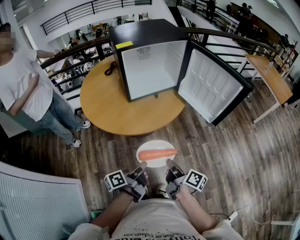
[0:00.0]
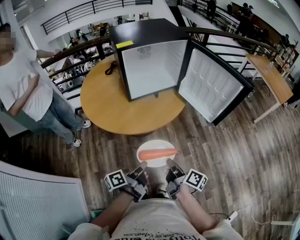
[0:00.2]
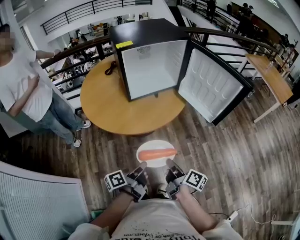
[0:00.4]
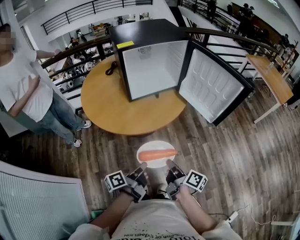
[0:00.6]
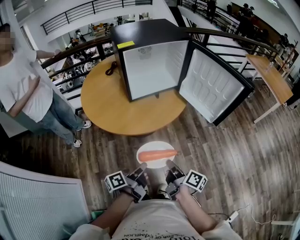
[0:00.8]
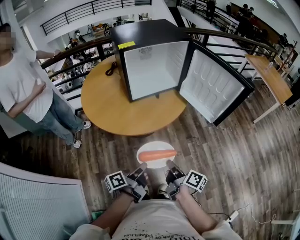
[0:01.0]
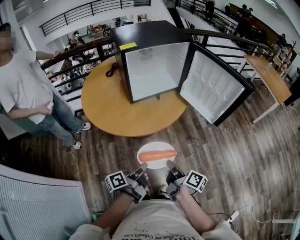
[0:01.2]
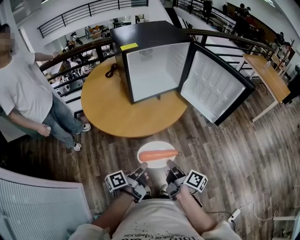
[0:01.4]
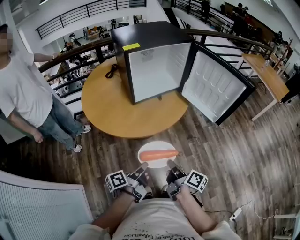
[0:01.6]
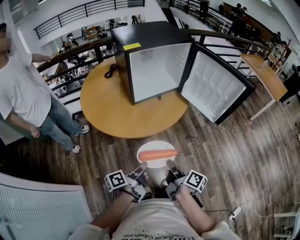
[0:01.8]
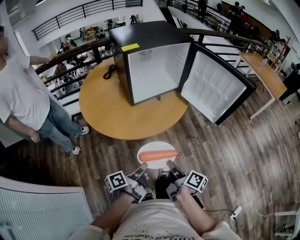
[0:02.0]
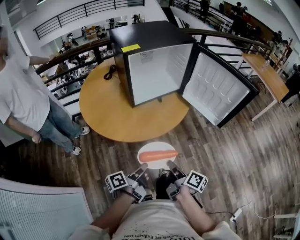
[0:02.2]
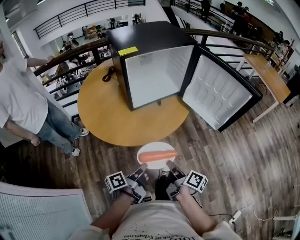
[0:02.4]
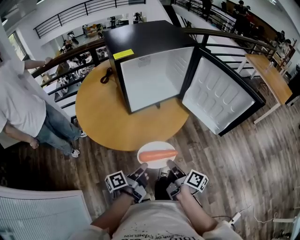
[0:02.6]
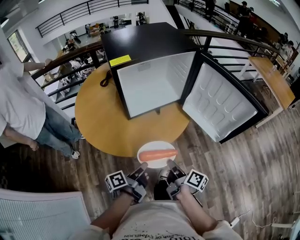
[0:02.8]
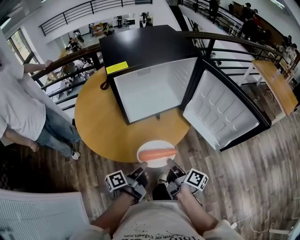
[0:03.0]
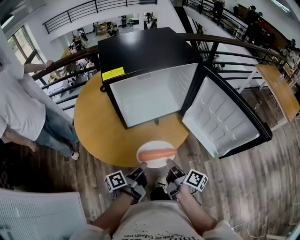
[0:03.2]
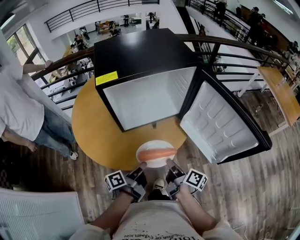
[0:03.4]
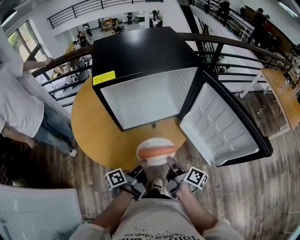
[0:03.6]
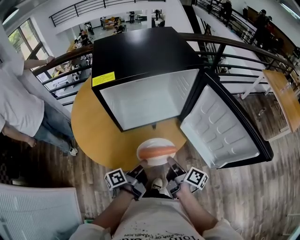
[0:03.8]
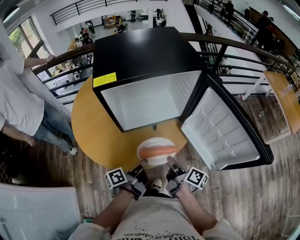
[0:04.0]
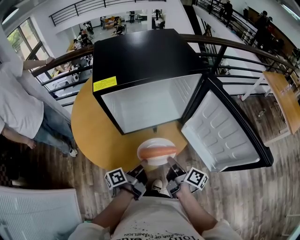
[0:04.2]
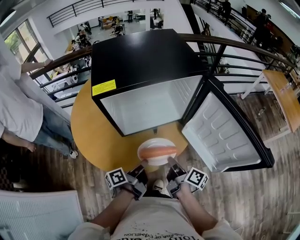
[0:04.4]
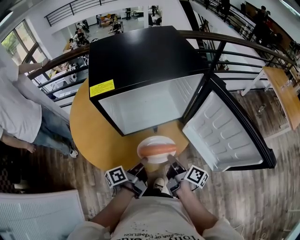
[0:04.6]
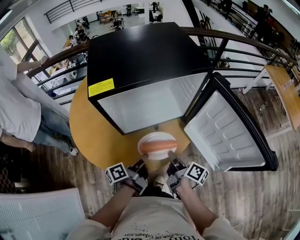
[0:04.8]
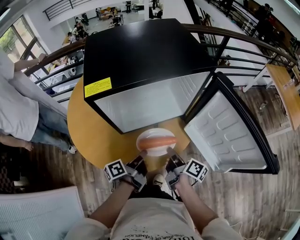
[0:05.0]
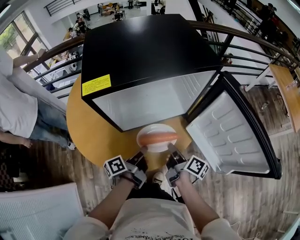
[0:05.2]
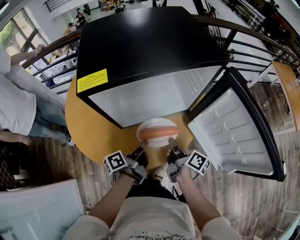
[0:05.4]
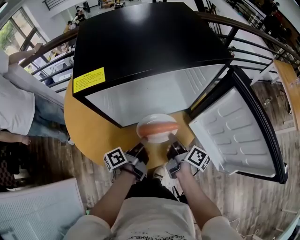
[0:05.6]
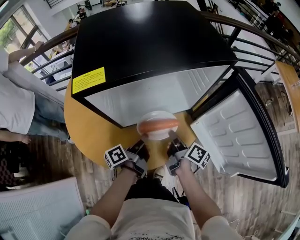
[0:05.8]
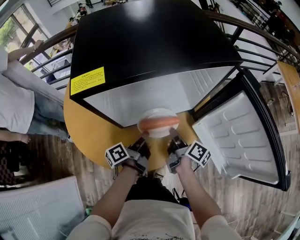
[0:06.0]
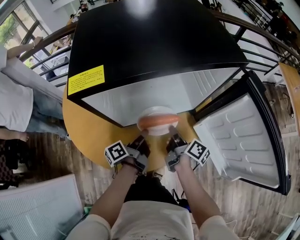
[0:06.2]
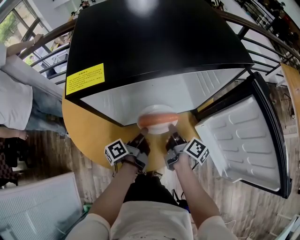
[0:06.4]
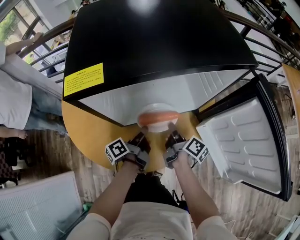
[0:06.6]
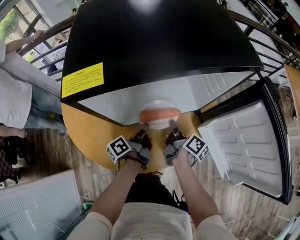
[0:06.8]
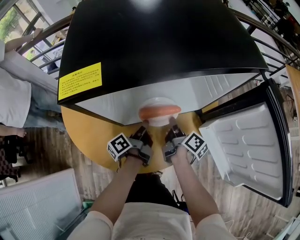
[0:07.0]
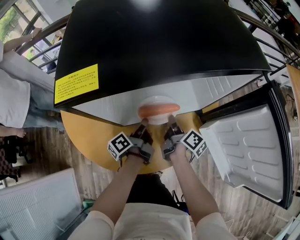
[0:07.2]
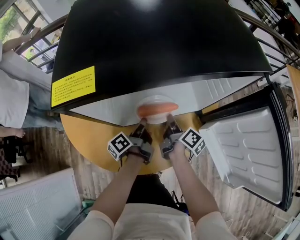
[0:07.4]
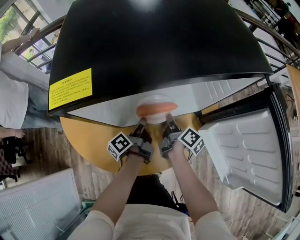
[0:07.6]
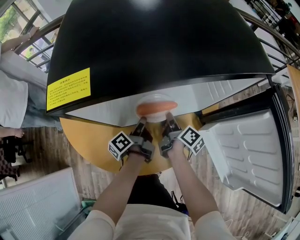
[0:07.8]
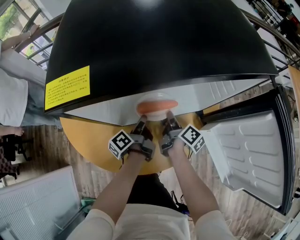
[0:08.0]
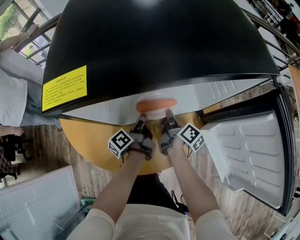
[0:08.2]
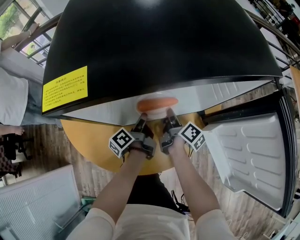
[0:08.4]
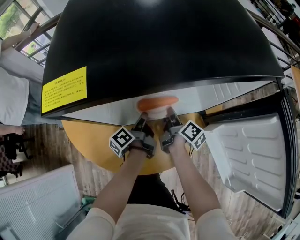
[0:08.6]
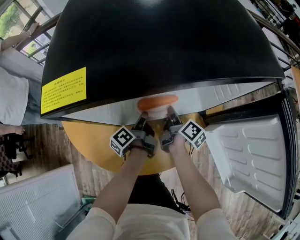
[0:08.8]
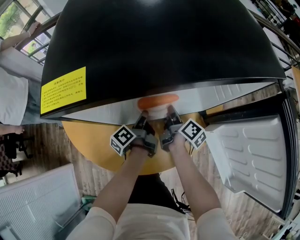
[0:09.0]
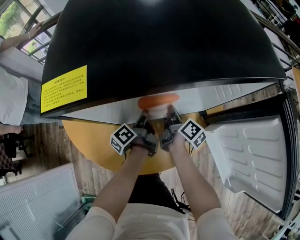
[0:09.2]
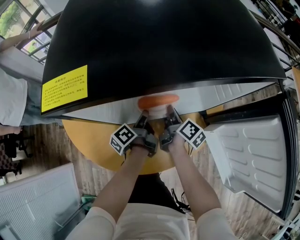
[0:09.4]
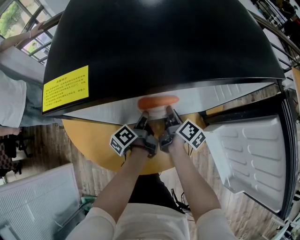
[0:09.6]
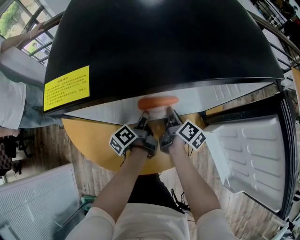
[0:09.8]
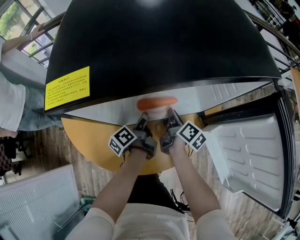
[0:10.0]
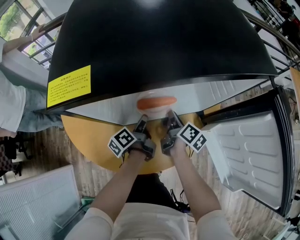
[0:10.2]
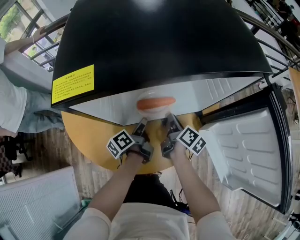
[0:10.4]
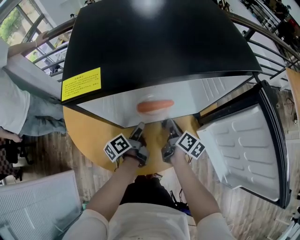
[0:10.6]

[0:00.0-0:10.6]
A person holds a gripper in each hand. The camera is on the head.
0:01.6 to 0:03.0: The right gripper moves about 20 cm.
0:03.0 to 0:04.6: The right gripper changes place by some 15 cm.
0:04.6 to 0:06.0: The right gripper changes place by some 15 cm.
0:06.0 to 0:07.6: The right gripper moves some 10 cm.
0:09.0 to 0:10.6: The right gripper shifts by about 5 cm.

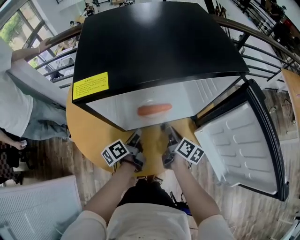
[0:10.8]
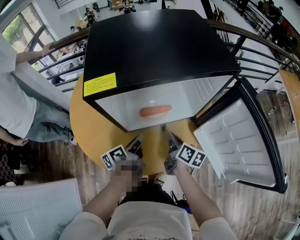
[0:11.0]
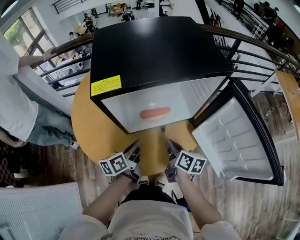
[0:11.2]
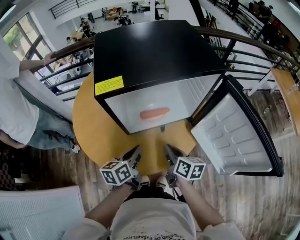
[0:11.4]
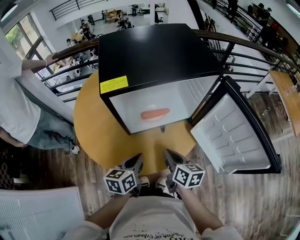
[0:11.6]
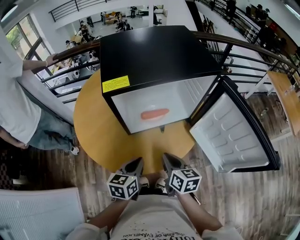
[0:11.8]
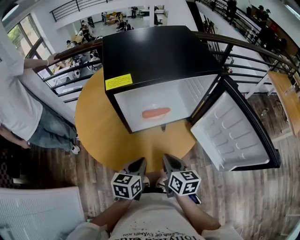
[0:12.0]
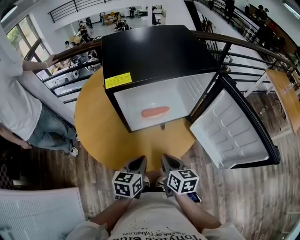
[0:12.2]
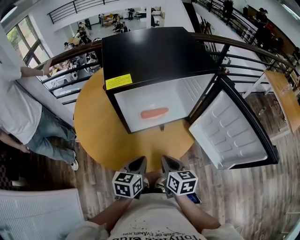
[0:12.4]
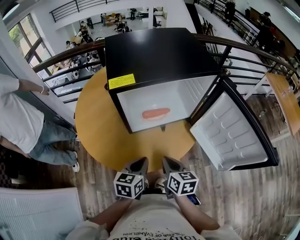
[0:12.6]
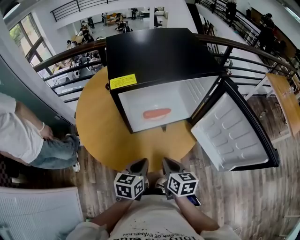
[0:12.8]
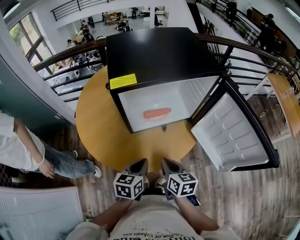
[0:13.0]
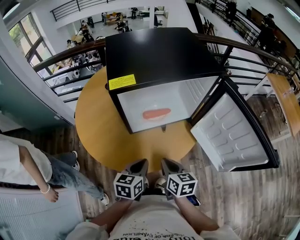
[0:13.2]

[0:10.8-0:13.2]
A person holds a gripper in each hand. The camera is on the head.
0:10.8 to 0:12.0: The right gripper changes place by roughly 20 cm, and turns by about 30 degrees.

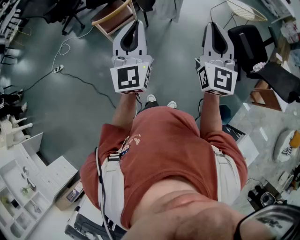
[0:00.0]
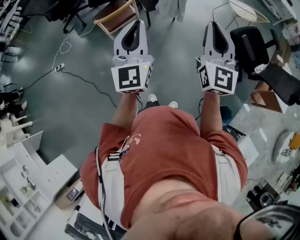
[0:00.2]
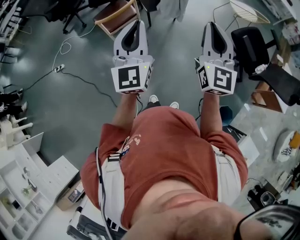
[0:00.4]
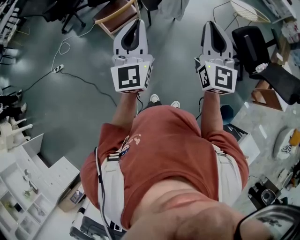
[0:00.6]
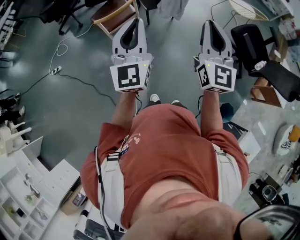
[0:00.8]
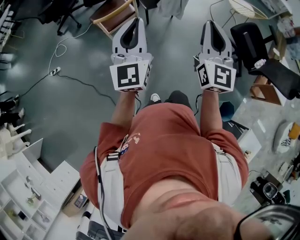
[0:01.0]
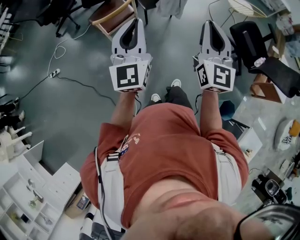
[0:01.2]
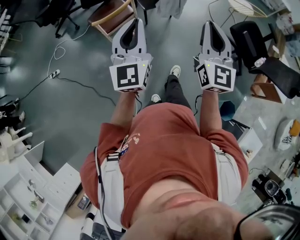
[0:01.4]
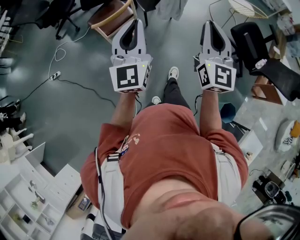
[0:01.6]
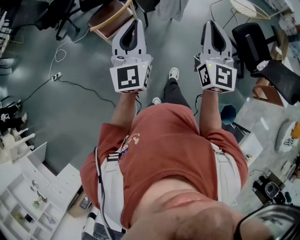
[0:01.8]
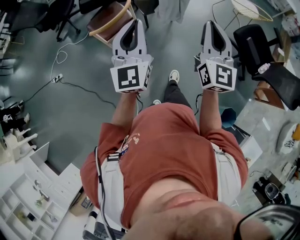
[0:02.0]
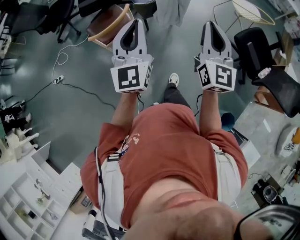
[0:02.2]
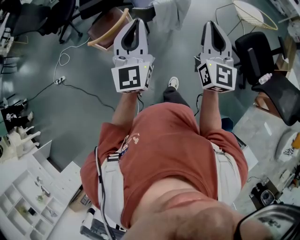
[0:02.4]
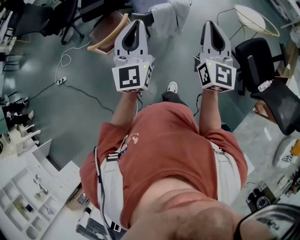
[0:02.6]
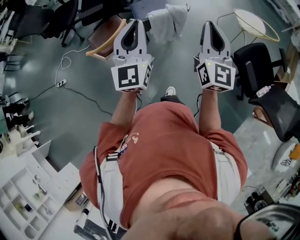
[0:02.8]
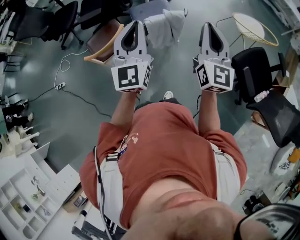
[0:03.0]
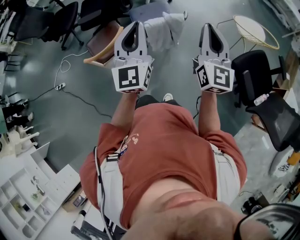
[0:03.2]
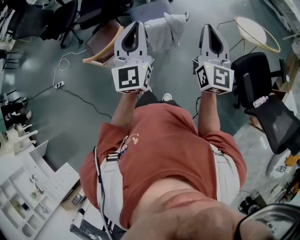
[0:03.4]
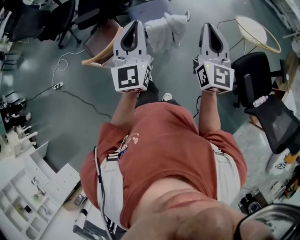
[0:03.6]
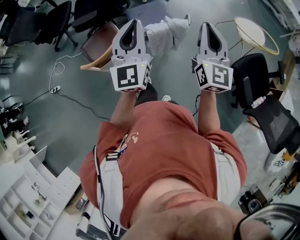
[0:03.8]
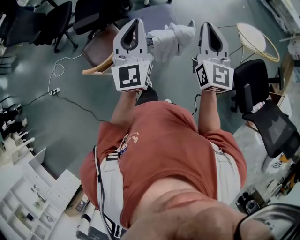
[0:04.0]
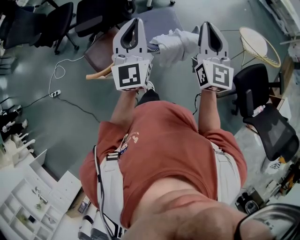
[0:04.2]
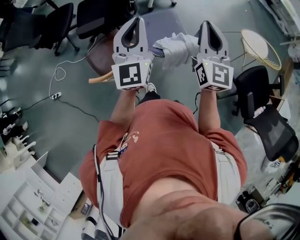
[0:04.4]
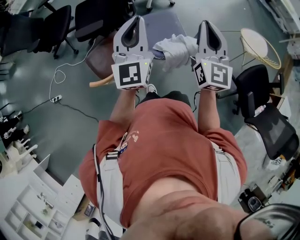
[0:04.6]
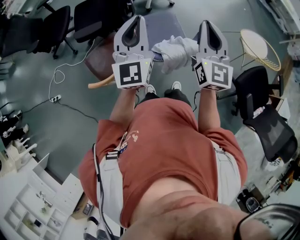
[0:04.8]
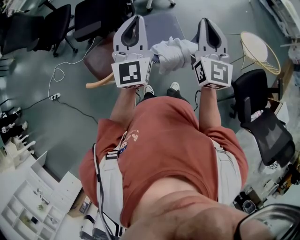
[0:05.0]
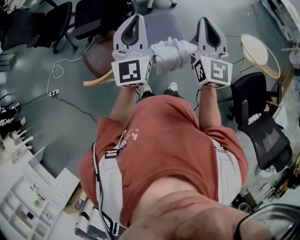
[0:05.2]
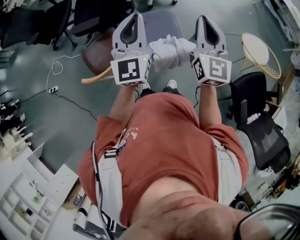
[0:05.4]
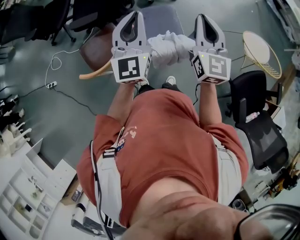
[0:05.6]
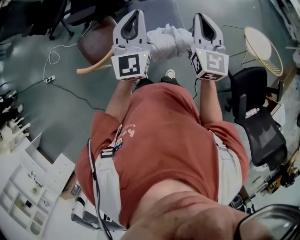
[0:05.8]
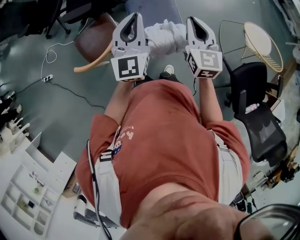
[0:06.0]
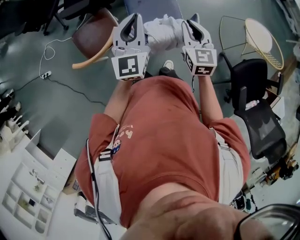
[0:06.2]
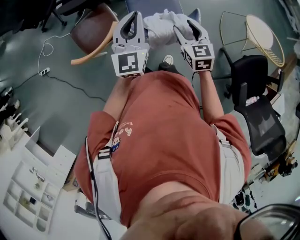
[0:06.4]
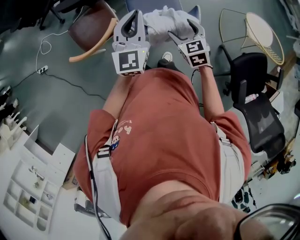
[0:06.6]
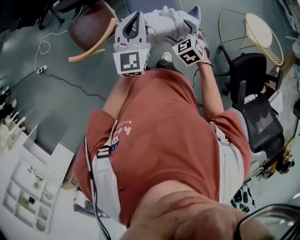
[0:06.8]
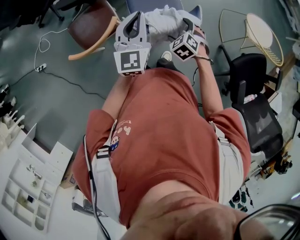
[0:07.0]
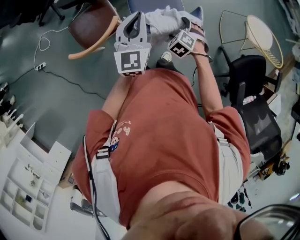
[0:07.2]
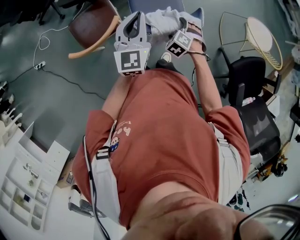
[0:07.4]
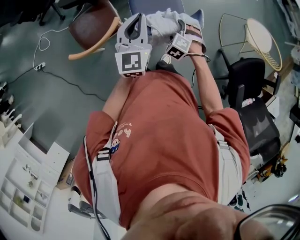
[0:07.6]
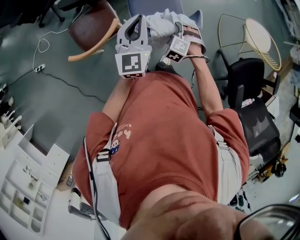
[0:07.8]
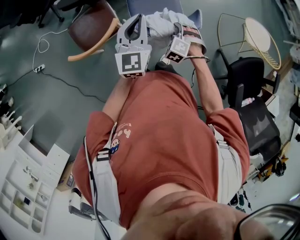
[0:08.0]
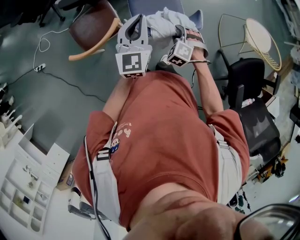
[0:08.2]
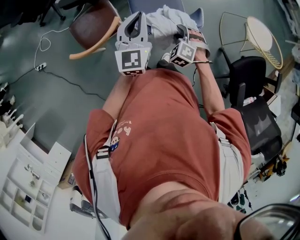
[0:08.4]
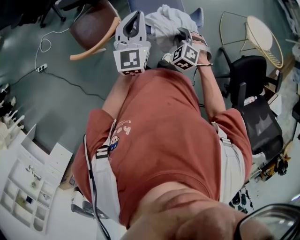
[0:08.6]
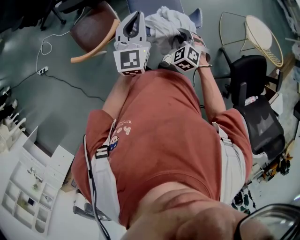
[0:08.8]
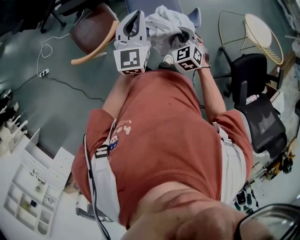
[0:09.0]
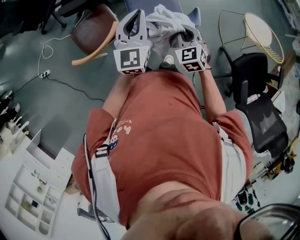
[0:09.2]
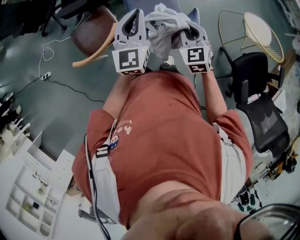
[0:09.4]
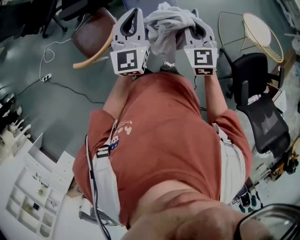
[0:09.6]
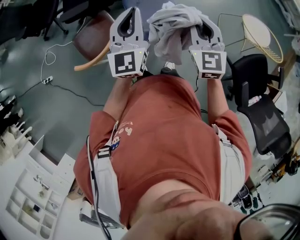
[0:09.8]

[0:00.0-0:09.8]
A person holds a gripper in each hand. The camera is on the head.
0:00.0 to 0:01.4: The right gripper shifts about 10 cm to the left. Meanwhile the left gripper moves to the left and forward, about 10 cm.
0:01.4 to 0:02.8: The grippers both shift forward and to the right by roughly 30 cm.
0:02.8 to 0:04.2: The left gripper travels forward by roughly 25 cm. Meanwhile the right gripper goes some 25 cm forward and to the left.
0:04.2 to 0:05.6: The grippers both shift forward by some 10 cm.
0:05.6 to 0:07.0: The right gripper travels downward by roughly 35 cm, points its fingers approximately 60 degrees further downward, and opens its fingers. The left gripper moves downward, about 15 cm.
0:07.0 to 0:08.4: The right gripper swivels about 20 degrees, and closes.
0:08.4 to 0:09.8: The left gripper heads upward, covering roughly 10 cm. Meanwhile the right gripper shifts roughly 25 cm upward, and tilts its fingers about 40 degrees upward.

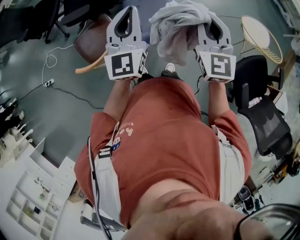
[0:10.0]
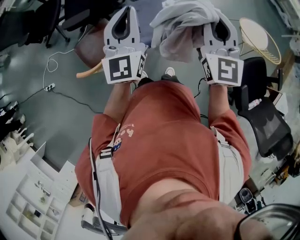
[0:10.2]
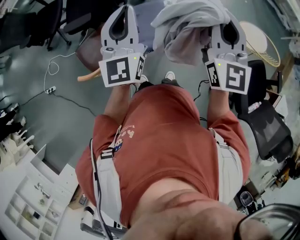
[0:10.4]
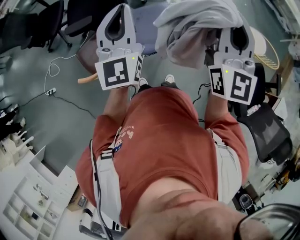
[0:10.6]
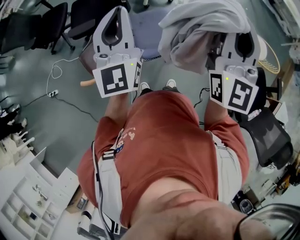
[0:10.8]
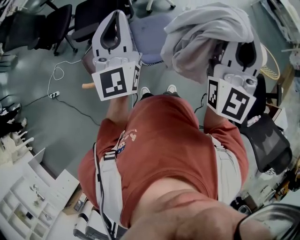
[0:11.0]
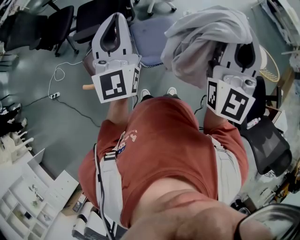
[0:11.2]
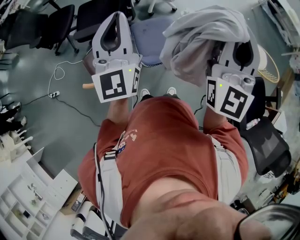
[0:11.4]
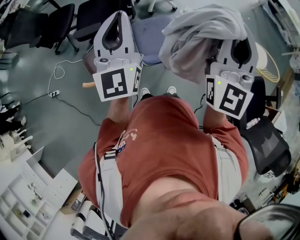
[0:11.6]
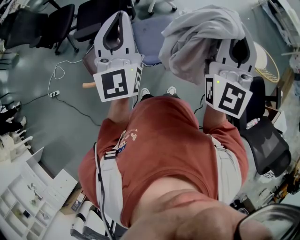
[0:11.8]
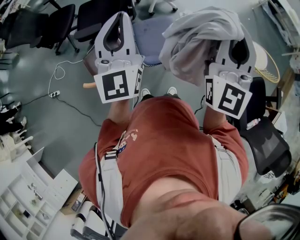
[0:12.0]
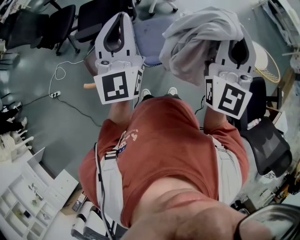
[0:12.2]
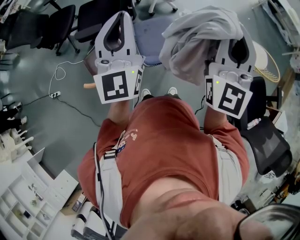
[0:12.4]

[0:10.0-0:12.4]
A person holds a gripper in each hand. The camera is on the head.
0:10.0 to 0:11.2: The left gripper is displaced upward by approximately 15 cm. Meanwhile the right gripper shifts some 20 cm upward, and turns by roughly 30 degrees.
0:11.2 to 0:12.4: The grippers make only small movements.
